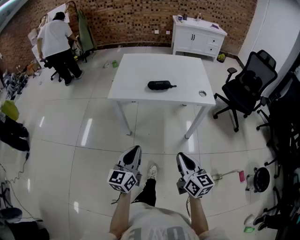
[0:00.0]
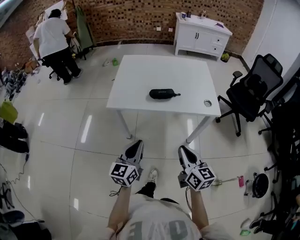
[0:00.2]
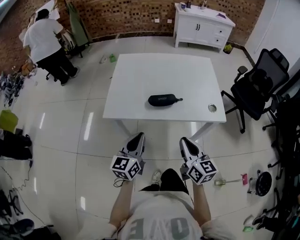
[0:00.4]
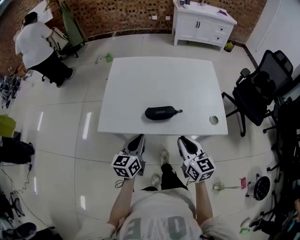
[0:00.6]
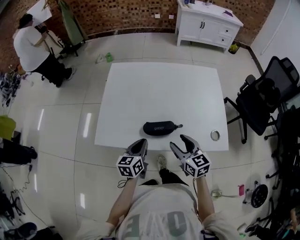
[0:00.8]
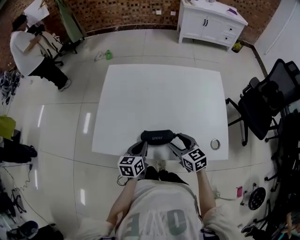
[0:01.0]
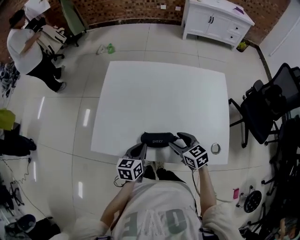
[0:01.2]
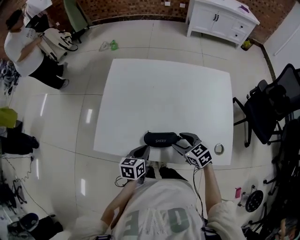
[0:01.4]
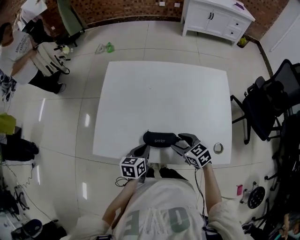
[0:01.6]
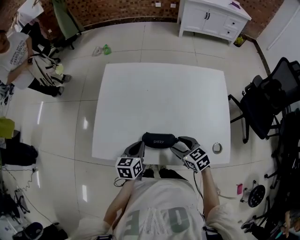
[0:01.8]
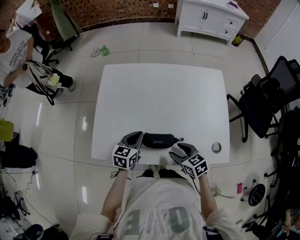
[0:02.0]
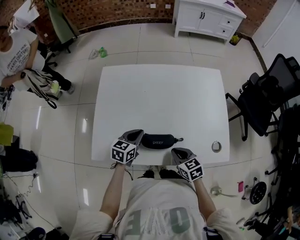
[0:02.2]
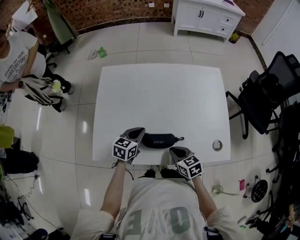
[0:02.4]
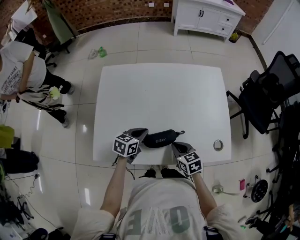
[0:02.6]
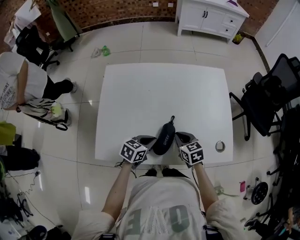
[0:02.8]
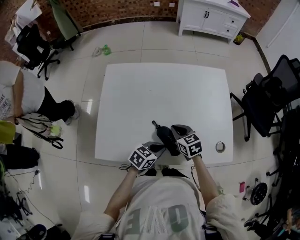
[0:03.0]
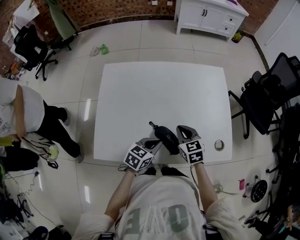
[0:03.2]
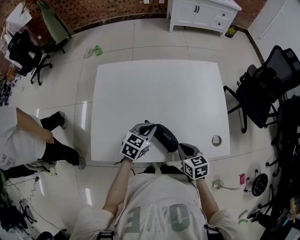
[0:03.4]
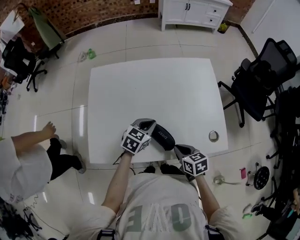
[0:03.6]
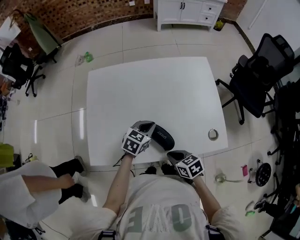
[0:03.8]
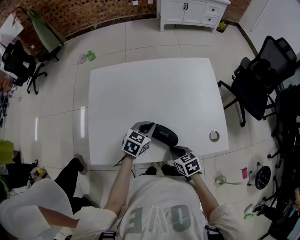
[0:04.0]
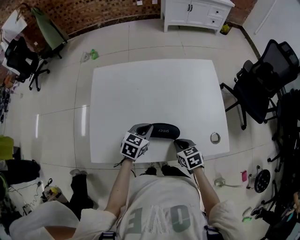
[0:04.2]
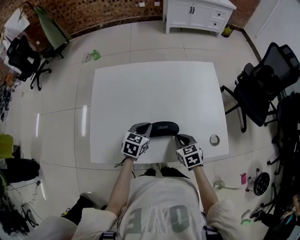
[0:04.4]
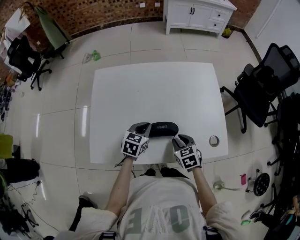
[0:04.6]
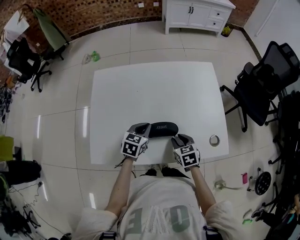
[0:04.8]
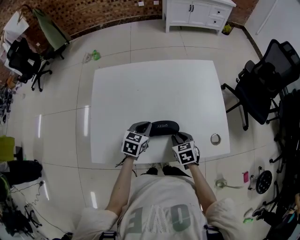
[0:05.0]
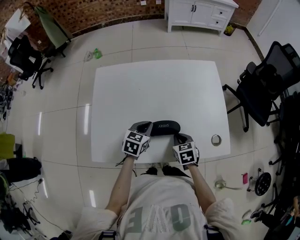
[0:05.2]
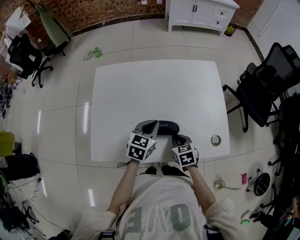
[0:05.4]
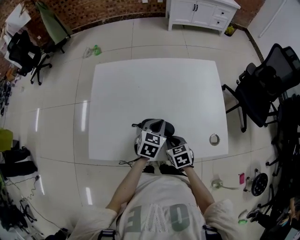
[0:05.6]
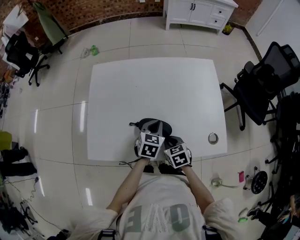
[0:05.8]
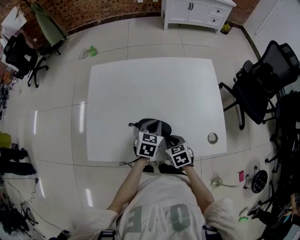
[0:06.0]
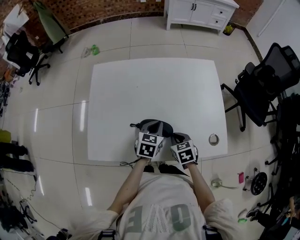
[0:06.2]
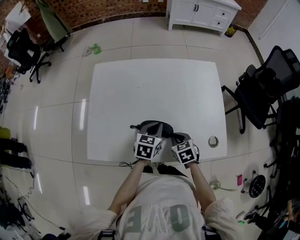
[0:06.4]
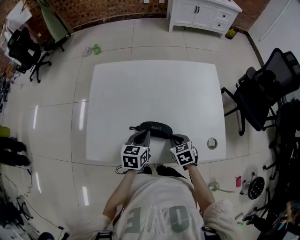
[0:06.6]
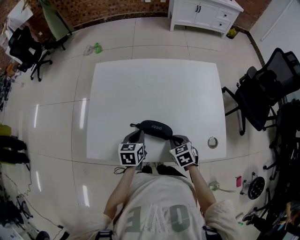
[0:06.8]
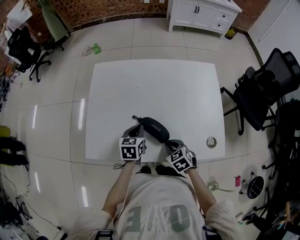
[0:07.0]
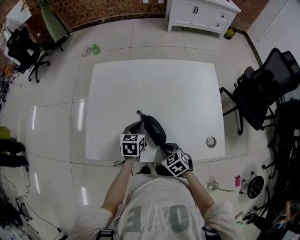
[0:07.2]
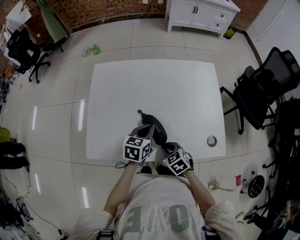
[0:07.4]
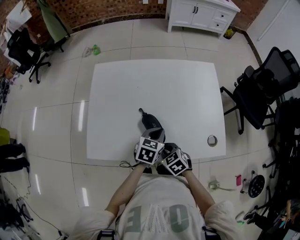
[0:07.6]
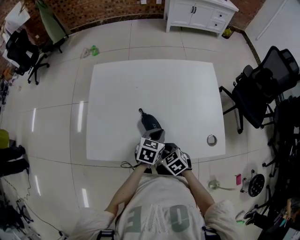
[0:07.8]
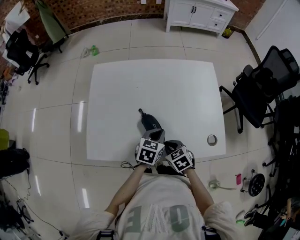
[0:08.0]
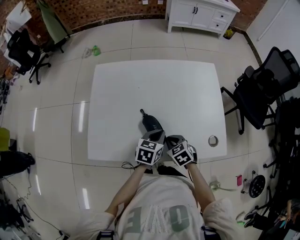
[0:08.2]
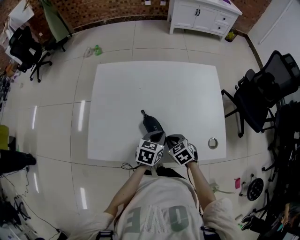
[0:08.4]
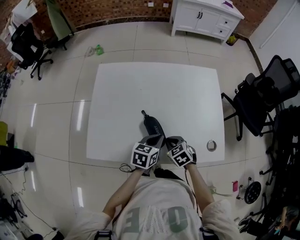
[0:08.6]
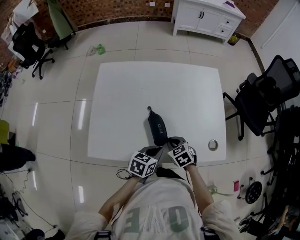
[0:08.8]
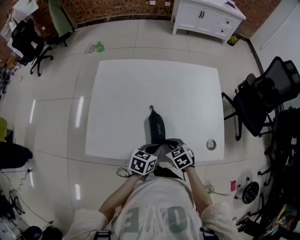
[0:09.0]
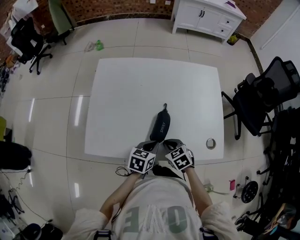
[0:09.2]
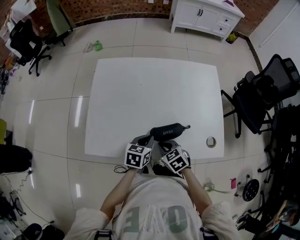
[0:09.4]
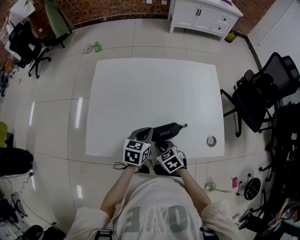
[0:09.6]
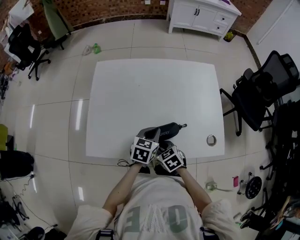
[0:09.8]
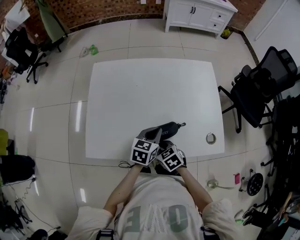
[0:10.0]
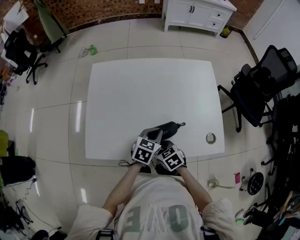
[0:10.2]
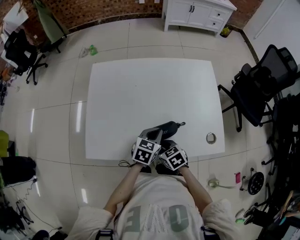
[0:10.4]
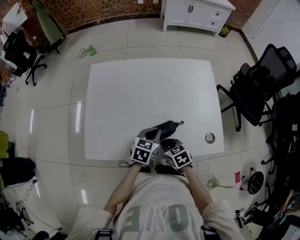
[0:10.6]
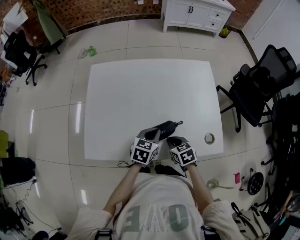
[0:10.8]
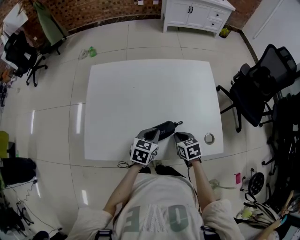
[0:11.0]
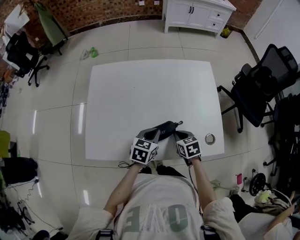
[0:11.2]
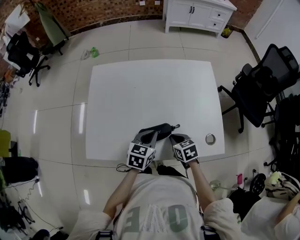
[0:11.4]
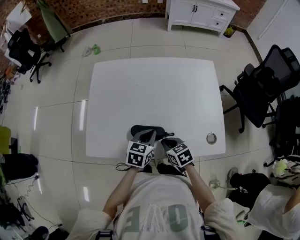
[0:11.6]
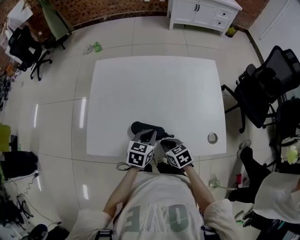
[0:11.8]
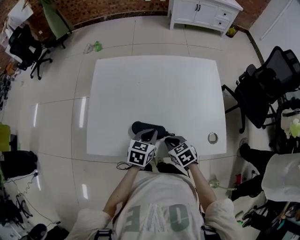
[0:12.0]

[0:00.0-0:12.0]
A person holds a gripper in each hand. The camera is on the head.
0:00.0 to 0:01.6: Both grippers are carried forward, approximately 60 cm. The left gripper angles its fingers downward, by roughly 40 degrees, while the right gripper swivels approximately 50 degrees, and opens.
0:01.6 to 0:03.0: The right gripper shifts by approximately 5 cm, and closes its fingers, while the left gripper ends up some 10 cm from where it was, and changes its angle by approximately 40 degrees.
0:03.0 to 0:04.4: The right gripper heads to the right, covering some 5 cm, and moves roughly 15 cm backward and comes back, while the left gripper goes some 10 cm forward, and changes its angle by roughly 20 degrees.
0:04.4 to 0:06.0: The left gripper heads to the right, covering about 5 cm; the right gripper opens and closes again.
0:06.0 to 0:07.6: The left gripper reaches about 10 cm to the left, then returns. The right gripper moves to the left, roughly 5 cm.
0:07.6 to 0:09.0: The left gripper shifts some 5 cm backward.
0:09.0 to 0:10.4: The left gripper shifts some 5 cm forward.

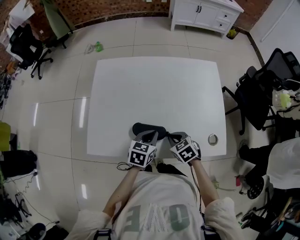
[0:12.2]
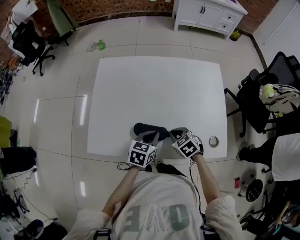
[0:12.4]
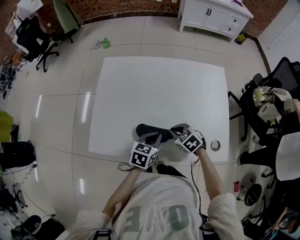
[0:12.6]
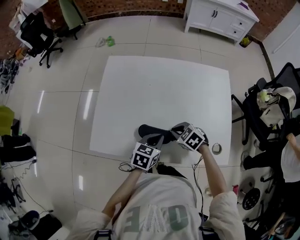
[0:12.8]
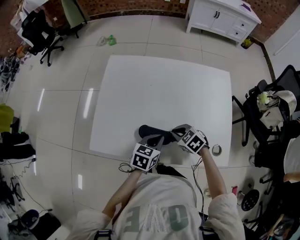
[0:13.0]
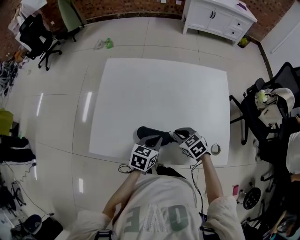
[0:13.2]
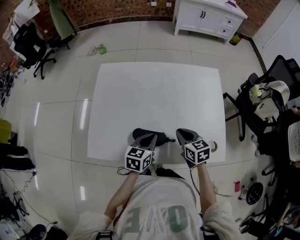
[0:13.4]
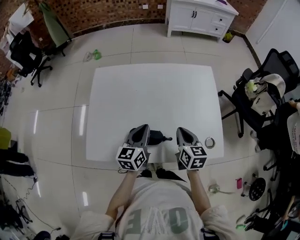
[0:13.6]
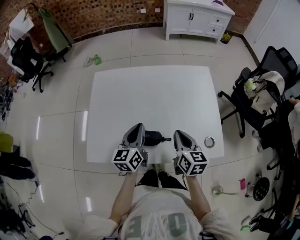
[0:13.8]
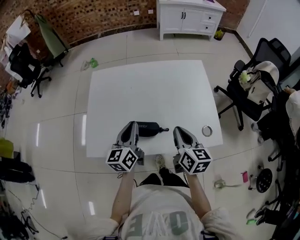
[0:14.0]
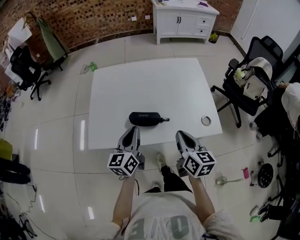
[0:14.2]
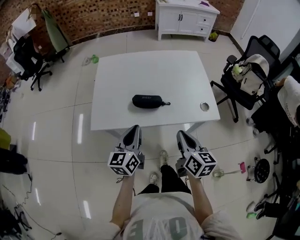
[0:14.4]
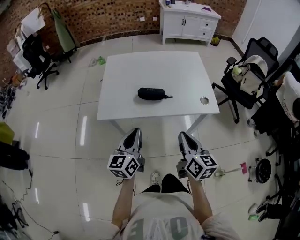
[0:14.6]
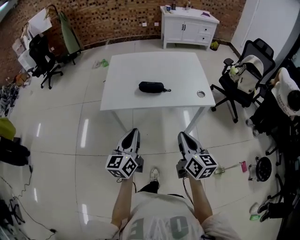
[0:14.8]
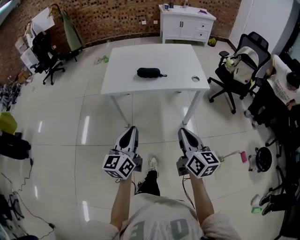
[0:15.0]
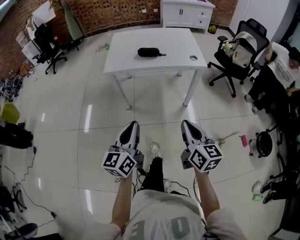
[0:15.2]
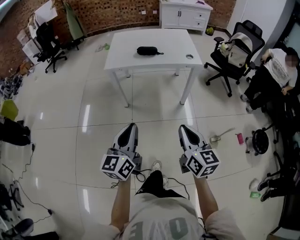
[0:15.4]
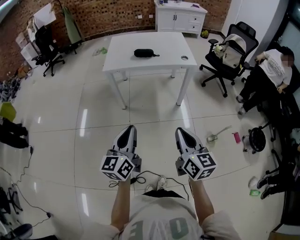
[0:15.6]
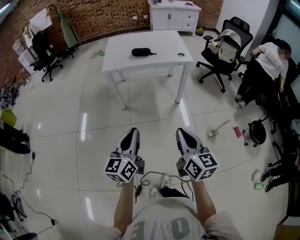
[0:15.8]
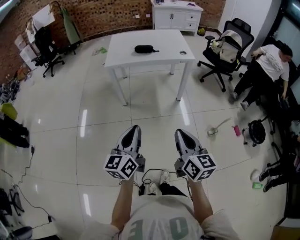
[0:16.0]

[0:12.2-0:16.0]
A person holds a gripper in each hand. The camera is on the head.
0:12.2 to 0:13.4: The right gripper is displaced upward by some 5 cm, and turns by some 30 degrees.
0:13.4 to 0:14.8: The pair of grippers is taken backward, about 40 cm. The right gripper changes its angle by approximately 40 degrees, while the left gripper swivels roughly 30 degrees.
0:14.8 to 0:16.0: The two grippers travel together, backward, some 50 cm.
